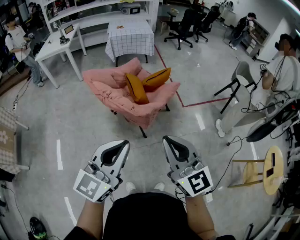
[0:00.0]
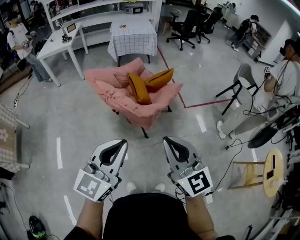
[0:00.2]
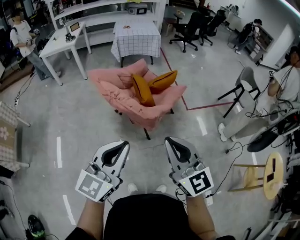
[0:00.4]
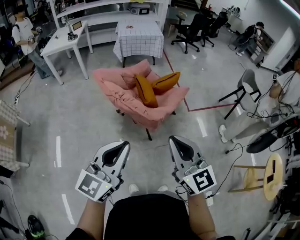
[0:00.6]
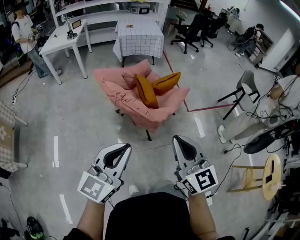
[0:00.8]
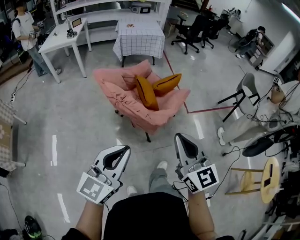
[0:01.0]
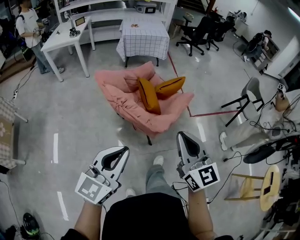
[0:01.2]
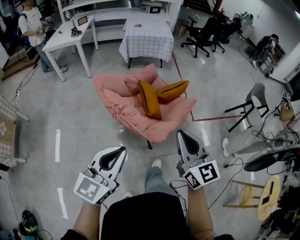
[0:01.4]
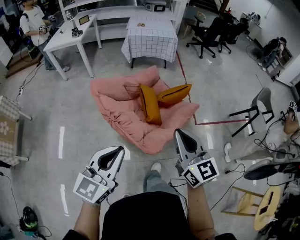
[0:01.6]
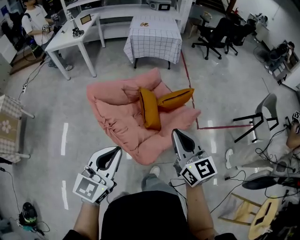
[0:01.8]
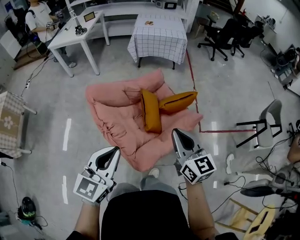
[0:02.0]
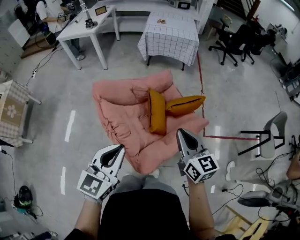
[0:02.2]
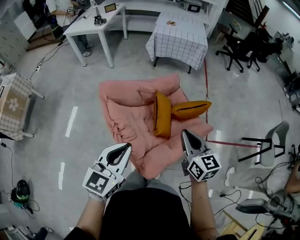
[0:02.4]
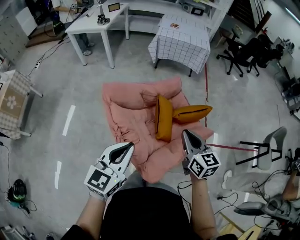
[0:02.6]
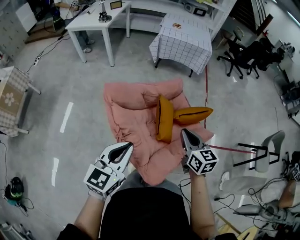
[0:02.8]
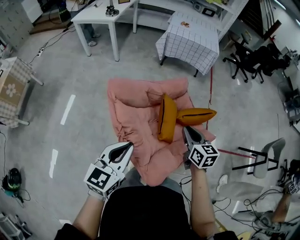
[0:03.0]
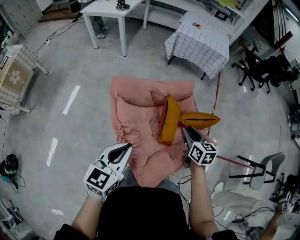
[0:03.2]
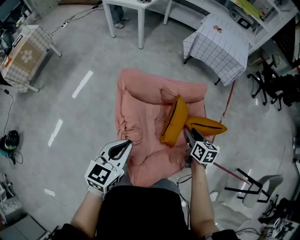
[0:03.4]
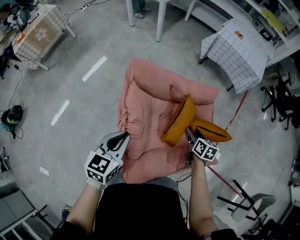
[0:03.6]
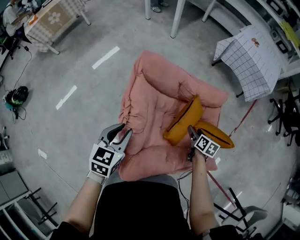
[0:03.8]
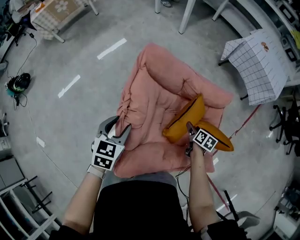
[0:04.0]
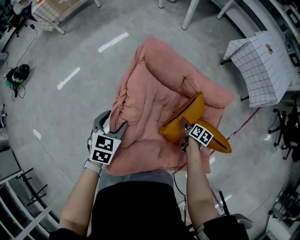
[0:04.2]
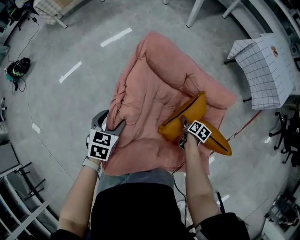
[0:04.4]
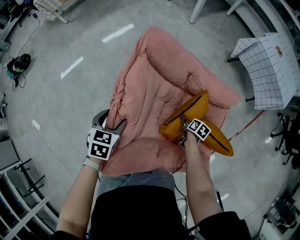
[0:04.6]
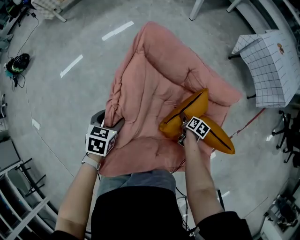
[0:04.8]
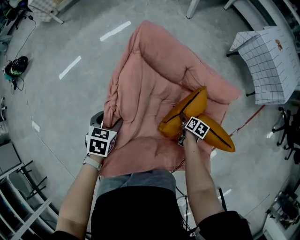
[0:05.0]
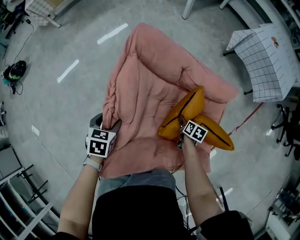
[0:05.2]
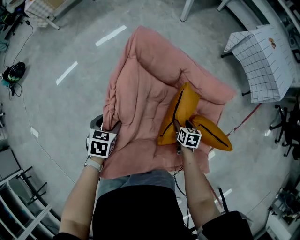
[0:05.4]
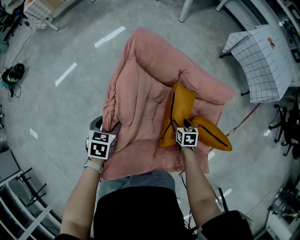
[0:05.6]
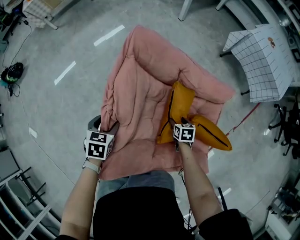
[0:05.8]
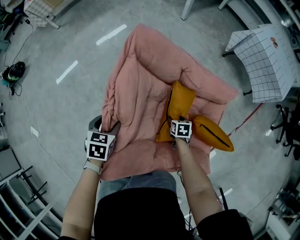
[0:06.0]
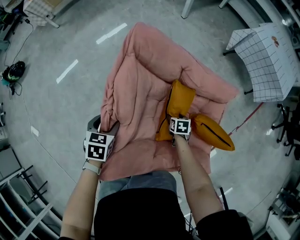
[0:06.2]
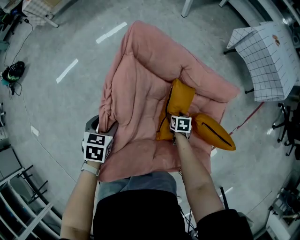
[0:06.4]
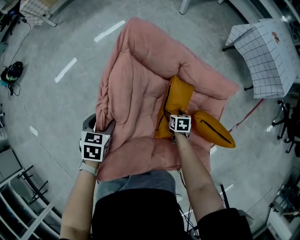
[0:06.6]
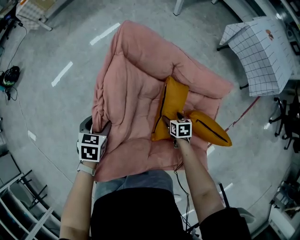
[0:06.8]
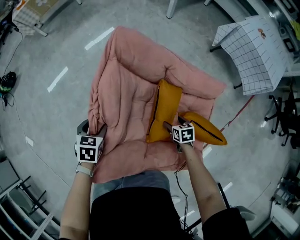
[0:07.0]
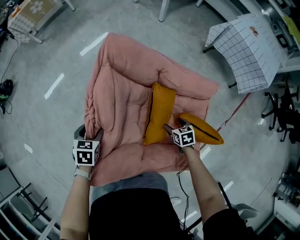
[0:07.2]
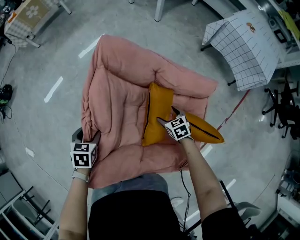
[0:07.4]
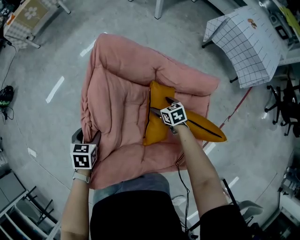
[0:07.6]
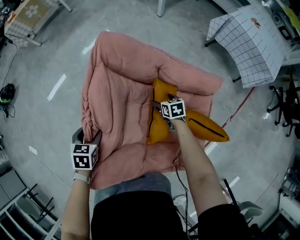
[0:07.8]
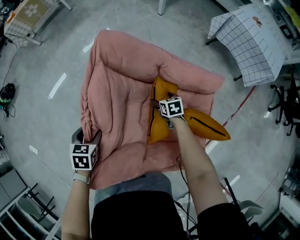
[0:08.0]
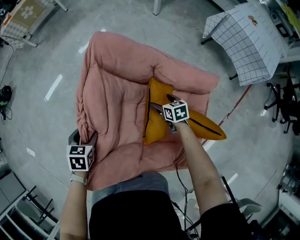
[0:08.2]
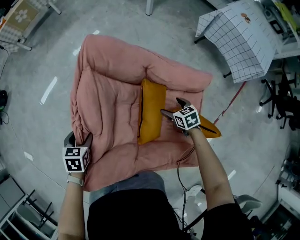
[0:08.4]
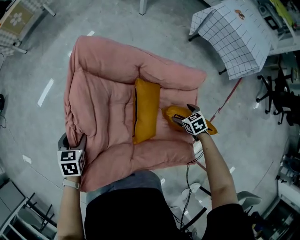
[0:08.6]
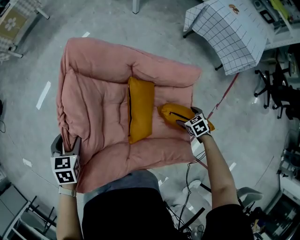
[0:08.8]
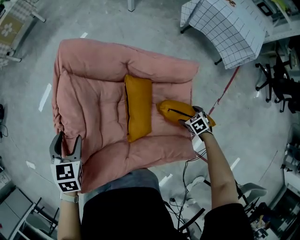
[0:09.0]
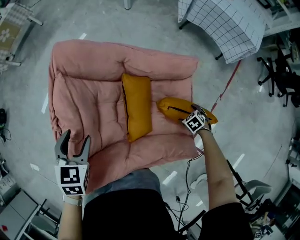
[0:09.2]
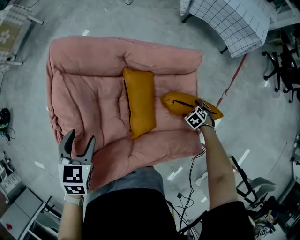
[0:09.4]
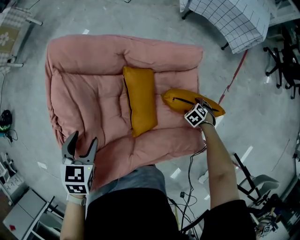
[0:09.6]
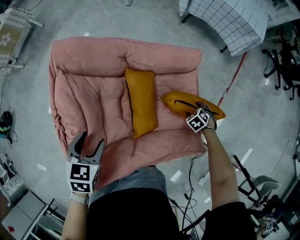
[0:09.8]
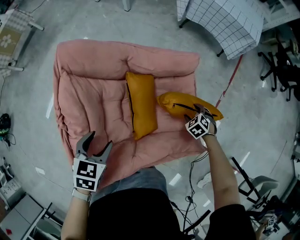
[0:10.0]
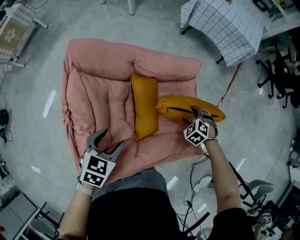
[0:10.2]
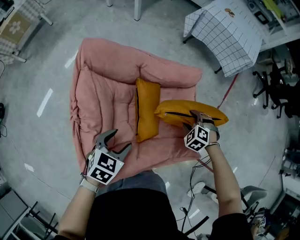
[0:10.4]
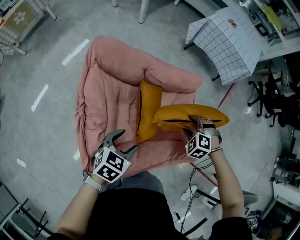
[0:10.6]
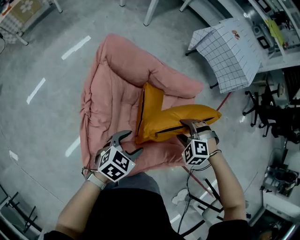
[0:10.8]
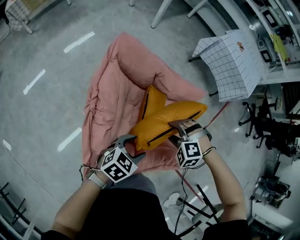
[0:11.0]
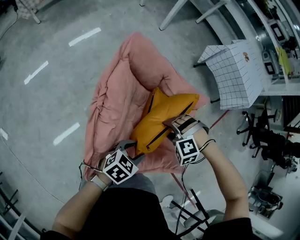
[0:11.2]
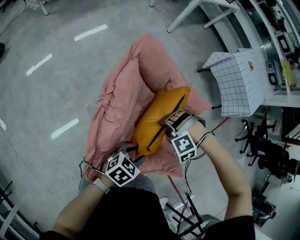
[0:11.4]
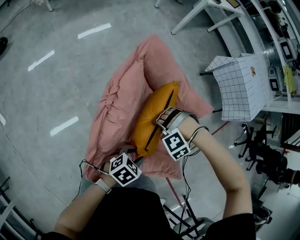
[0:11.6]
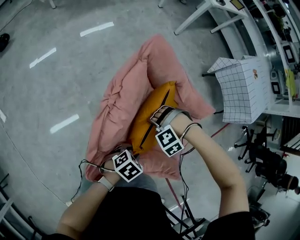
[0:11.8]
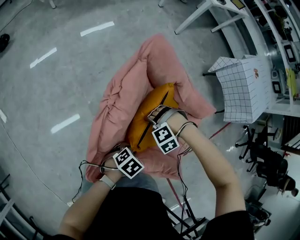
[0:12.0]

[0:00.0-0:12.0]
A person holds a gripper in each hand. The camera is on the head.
0:00.0 to 0:01.6: Both grippers travel together forward, some 25 cm.
0:01.6 to 0:03.0: The right gripper goes some 30 cm forward and downward, and changes its angle by about 30 degrees; the left gripper goes about 20 cm forward and downward, and turns by some 20 degrees.
0:03.0 to 0:04.4: The right gripper goes some 40 cm downward, points its fingers some 30 degrees further downward, and opens. The left gripper travels downward by roughly 25 cm, points its fingers approximately 40 degrees further downward, and opens.
0:04.4 to 0:06.0: The right gripper goes up and down, approximately 5 cm each way, reversing 2 times, and swivels approximately 40 degrees. Meanwhile the left gripper goes some 5 cm downward.
0:06.0 to 0:07.6: The right gripper goes approximately 10 cm forward, and rotates some 20 degrees.
0:07.6 to 0:09.0: The right gripper changes place by roughly 30 cm, and rotates roughly 30 degrees. Meanwhile the left gripper is displaced upward by approximately 10 cm.
0:09.0 to 0:10.4: The left gripper changes place by roughly 15 cm, and turns by some 40 degrees. Meanwhile the right gripper is displaced upward by roughly 10 cm, turns by some 40 degrees, and closes.
0:10.4 to 0:12.0: The left gripper goes some 10 cm downward, turns by approximately 30 degrees, and closes up. The right gripper travels upward and back again, some 10 cm each way, and rolls counterclockwise, seen from behind, by roughly 80 degrees.

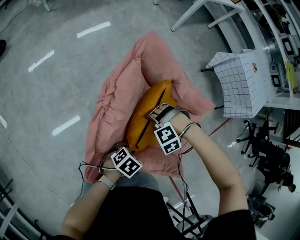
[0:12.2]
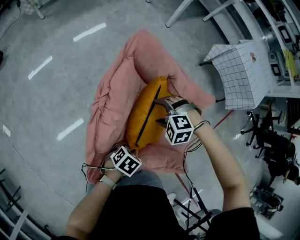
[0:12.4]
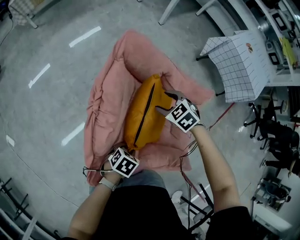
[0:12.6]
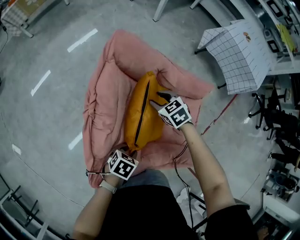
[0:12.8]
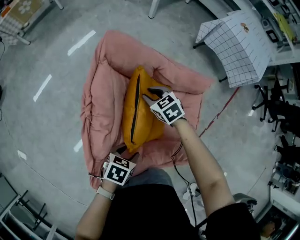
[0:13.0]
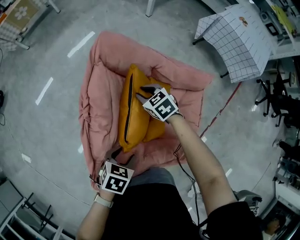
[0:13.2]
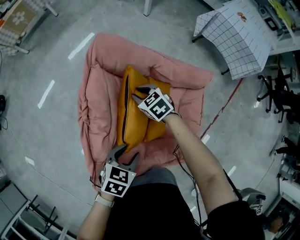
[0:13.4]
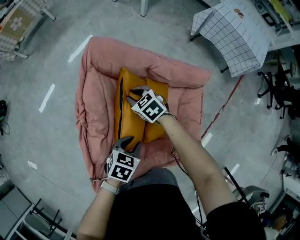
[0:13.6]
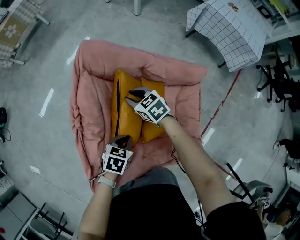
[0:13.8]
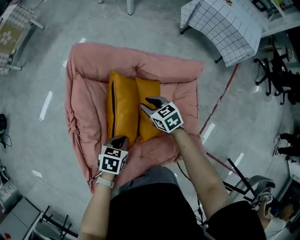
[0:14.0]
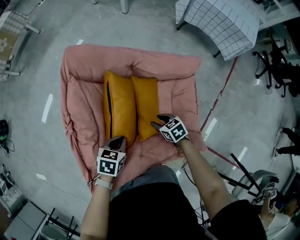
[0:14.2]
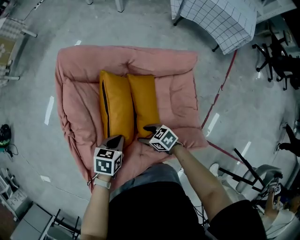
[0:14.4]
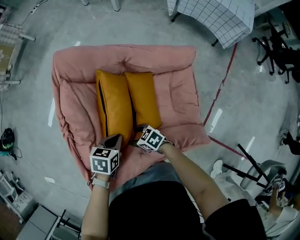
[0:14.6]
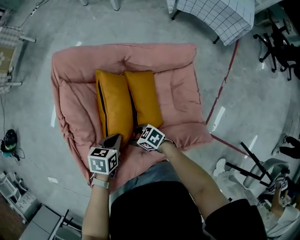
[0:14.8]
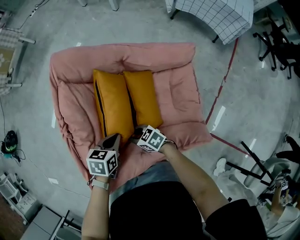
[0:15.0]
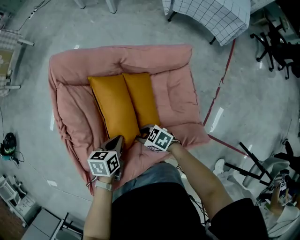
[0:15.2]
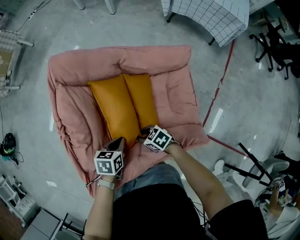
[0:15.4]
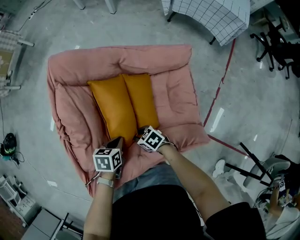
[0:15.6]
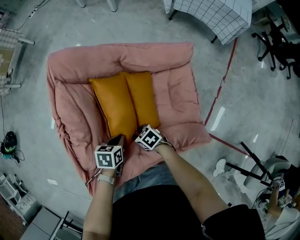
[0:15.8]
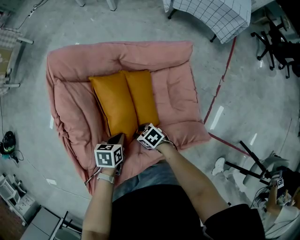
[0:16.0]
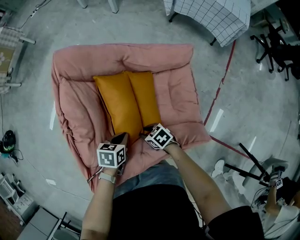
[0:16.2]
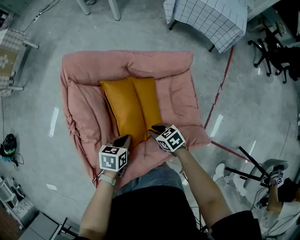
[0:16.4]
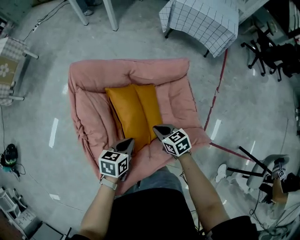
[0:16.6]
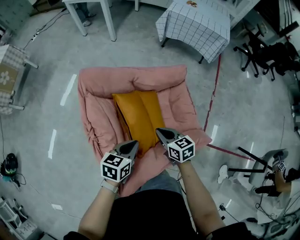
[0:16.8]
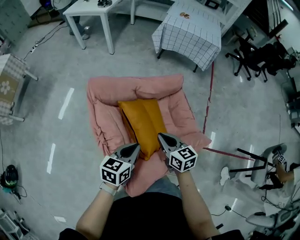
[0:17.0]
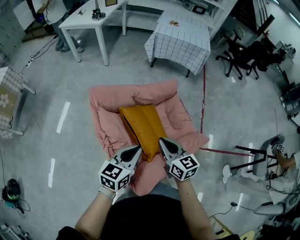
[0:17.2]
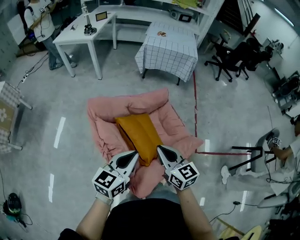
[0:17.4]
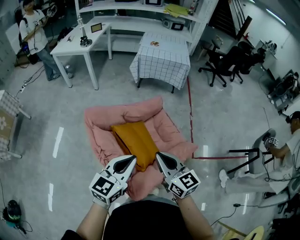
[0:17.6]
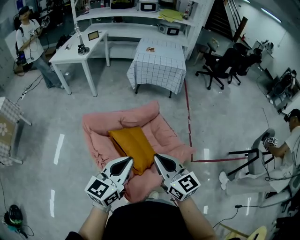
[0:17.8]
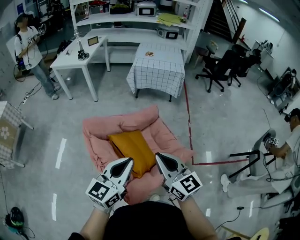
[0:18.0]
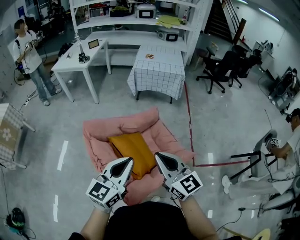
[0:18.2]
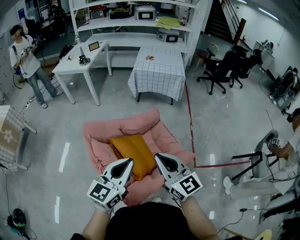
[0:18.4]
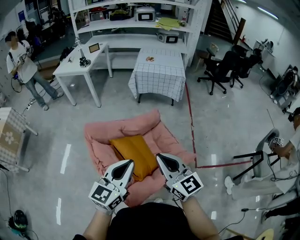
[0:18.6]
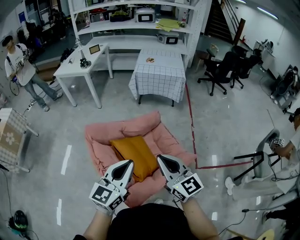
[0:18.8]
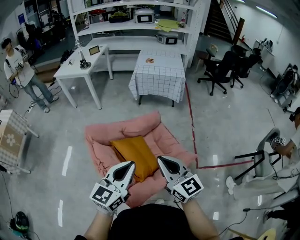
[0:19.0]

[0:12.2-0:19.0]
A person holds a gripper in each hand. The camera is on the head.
0:12.2 to 0:13.6: The left gripper shifts by some 10 cm. Meanwhile the right gripper moves some 15 cm, rotates around the line of its fingers by approximately 90 degrees, clockwise from behind, and closes up.
0:13.6 to 0:15.0: The left gripper closes its fingers, while the right gripper shifts by approximately 25 cm, swivels roughly 30 degrees, and opens and closes again.
0:15.0 to 0:16.2: The right gripper changes place by approximately 10 cm; the left gripper changes place by some 5 cm.
0:16.2 to 0:17.6: Both grippers travel together upward, roughly 40 cm. The right gripper angles its fingers upward, by about 40 degrees; the left gripper tips its fingers upward by approximately 50 degrees.
0:17.6 to 0:19.0: The left gripper shifts roughly 5 cm upward; the right gripper is displaced upward and to the right by about 10 cm.

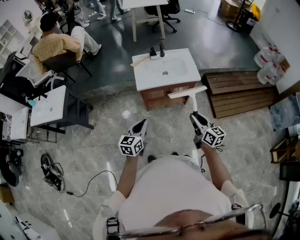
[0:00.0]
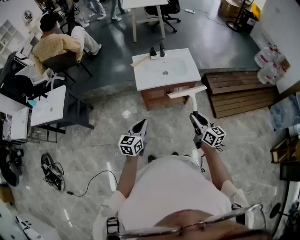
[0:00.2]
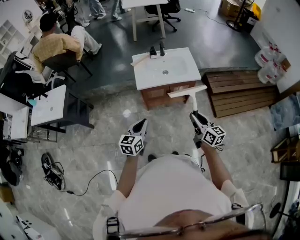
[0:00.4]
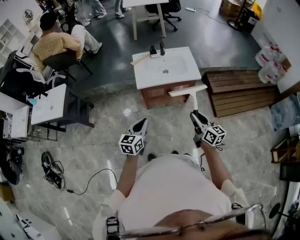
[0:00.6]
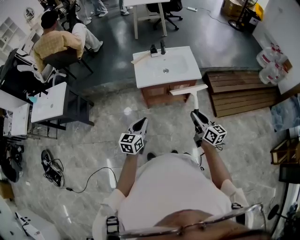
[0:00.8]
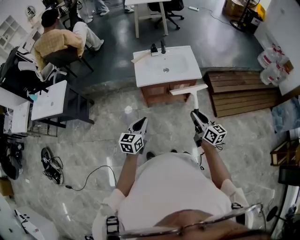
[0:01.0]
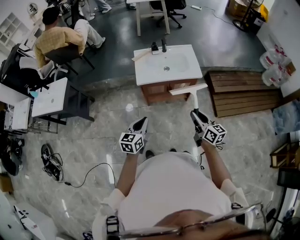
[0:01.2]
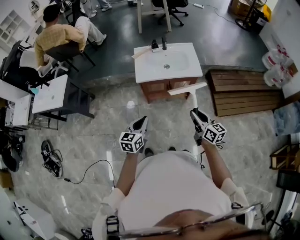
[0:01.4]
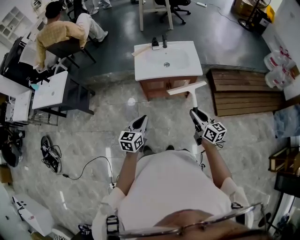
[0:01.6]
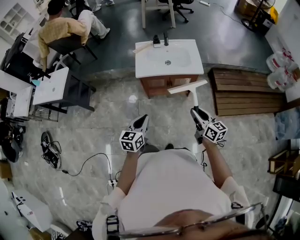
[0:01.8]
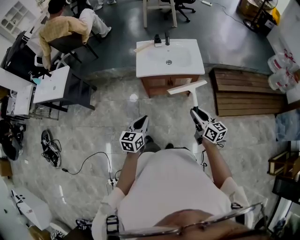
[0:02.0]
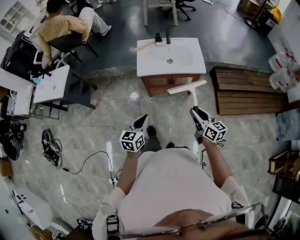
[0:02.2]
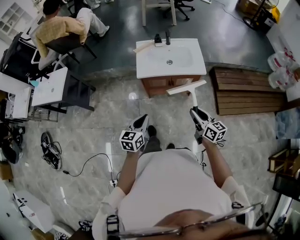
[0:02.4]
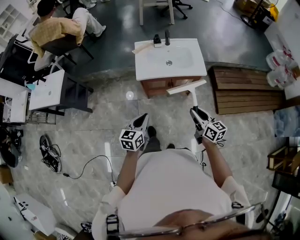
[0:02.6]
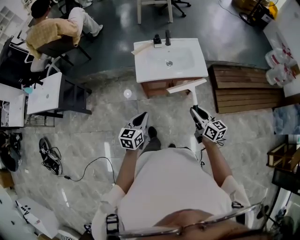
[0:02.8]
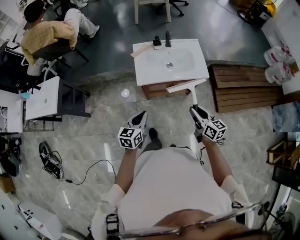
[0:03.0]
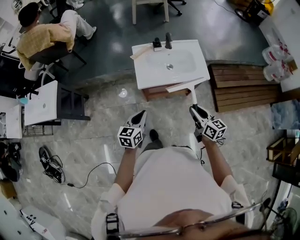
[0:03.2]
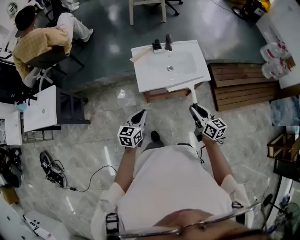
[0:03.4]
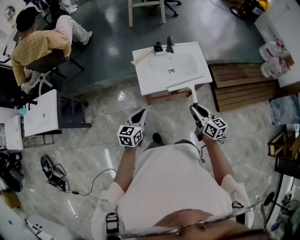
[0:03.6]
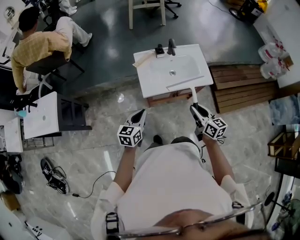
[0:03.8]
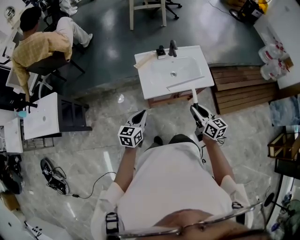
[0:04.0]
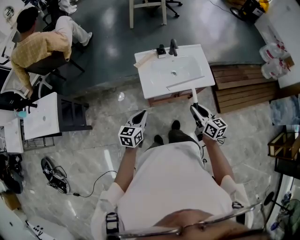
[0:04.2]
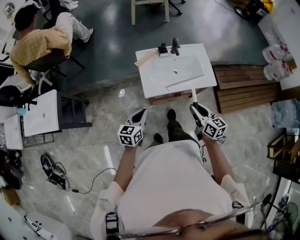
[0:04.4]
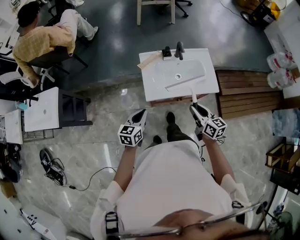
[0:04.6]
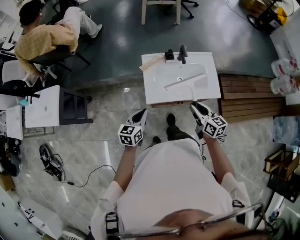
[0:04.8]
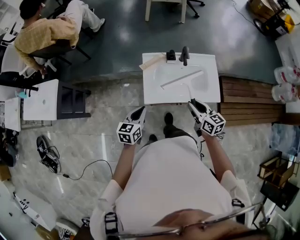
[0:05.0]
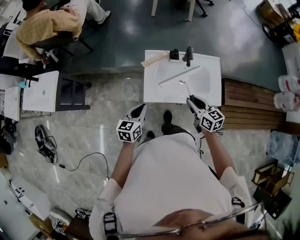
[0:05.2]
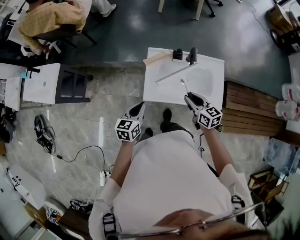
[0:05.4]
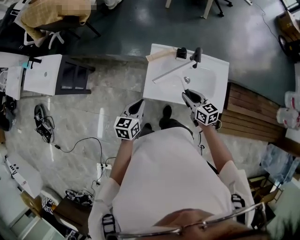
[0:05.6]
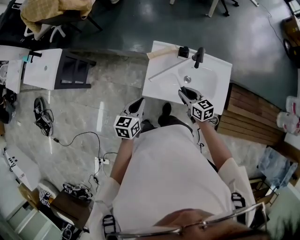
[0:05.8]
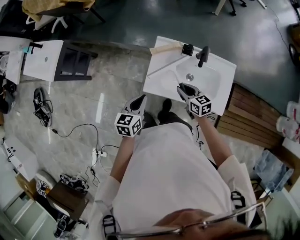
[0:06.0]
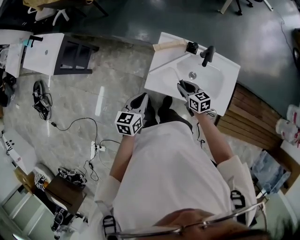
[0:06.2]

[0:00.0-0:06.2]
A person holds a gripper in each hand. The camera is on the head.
0:00.0 to 0:01.6: The grippers both shift to the right by approximately 5 cm.
0:01.6 to 0:03.2: The grippers both shift forward and to the left by roughly 20 cm.
0:03.2 to 0:04.6: Both grippers travel together forward and to the left, about 15 cm.
0:04.6 to 0:06.2: The left gripper changes place by roughly 10 cm, and turns by approximately 30 degrees. The right gripper changes place by approximately 25 cm, and changes its angle by about 40 degrees.
